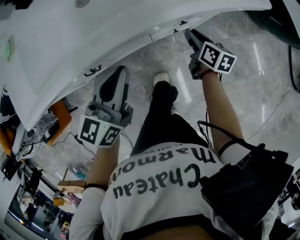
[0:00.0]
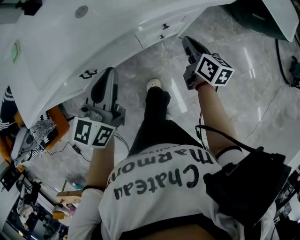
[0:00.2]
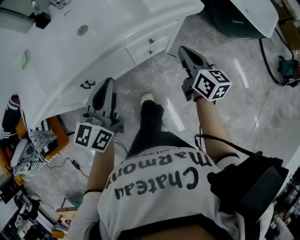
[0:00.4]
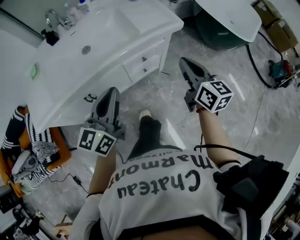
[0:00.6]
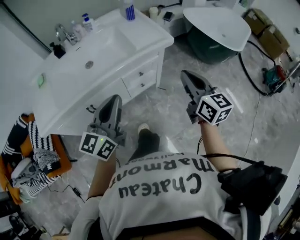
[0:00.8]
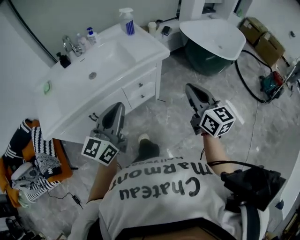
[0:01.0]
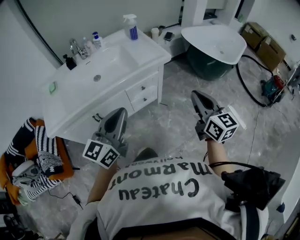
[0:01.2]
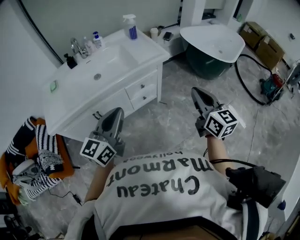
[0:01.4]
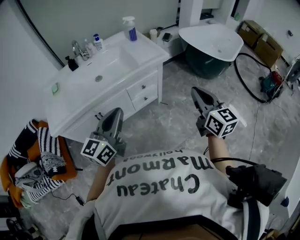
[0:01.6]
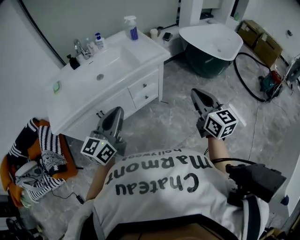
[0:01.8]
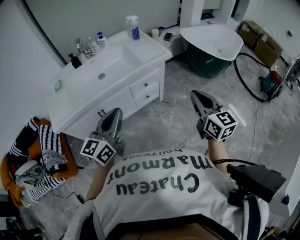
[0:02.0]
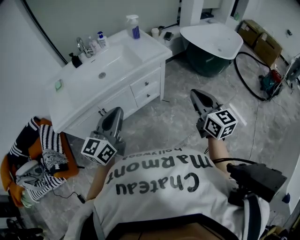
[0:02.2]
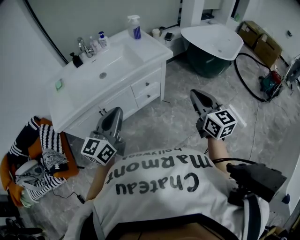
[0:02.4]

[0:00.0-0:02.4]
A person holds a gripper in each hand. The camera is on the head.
0:00.0 to 0:01.2: The right gripper moves upward and backward, about 50 cm, turns by about 40 degrees, and closes its fingers. The left gripper is displaced upward, backward and to the right by some 35 cm, and turns by about 20 degrees.
0:01.2 to 0:02.4: The left gripper moves to the left and backward, approximately 10 cm, while the right gripper goes roughly 5 cm backward.

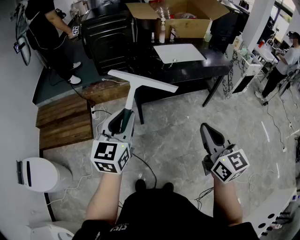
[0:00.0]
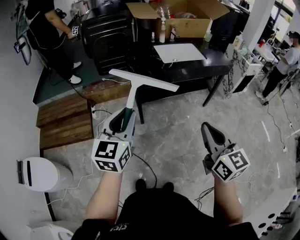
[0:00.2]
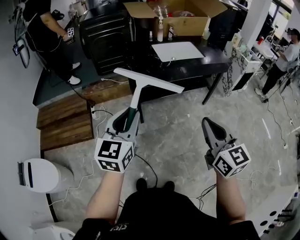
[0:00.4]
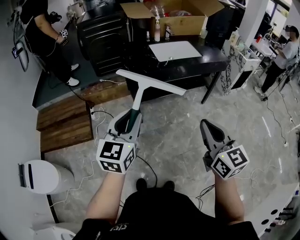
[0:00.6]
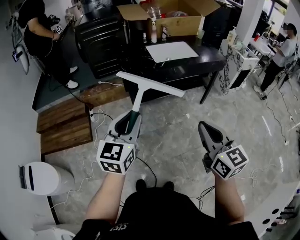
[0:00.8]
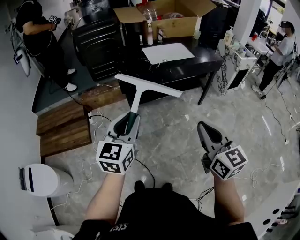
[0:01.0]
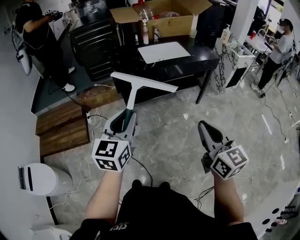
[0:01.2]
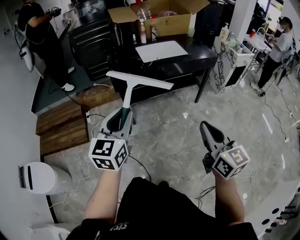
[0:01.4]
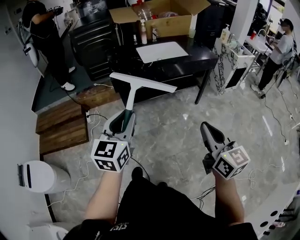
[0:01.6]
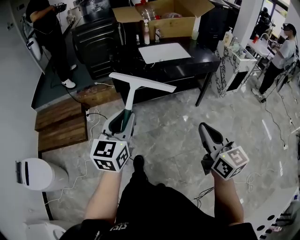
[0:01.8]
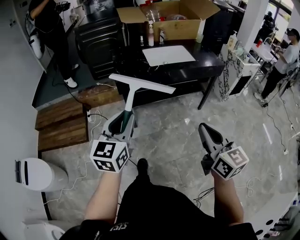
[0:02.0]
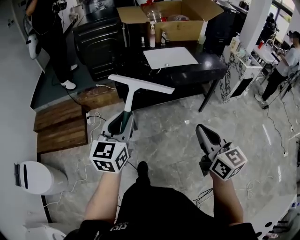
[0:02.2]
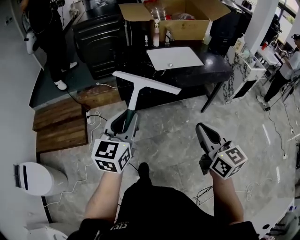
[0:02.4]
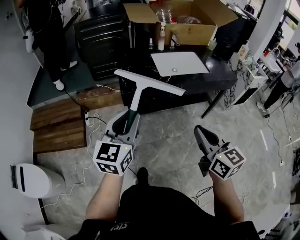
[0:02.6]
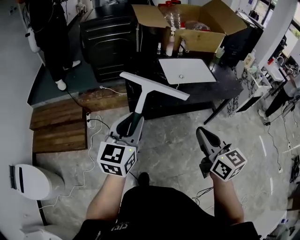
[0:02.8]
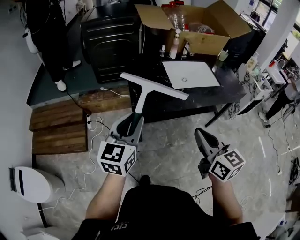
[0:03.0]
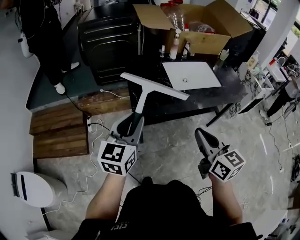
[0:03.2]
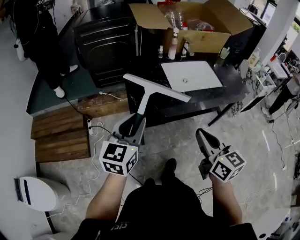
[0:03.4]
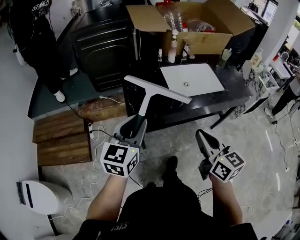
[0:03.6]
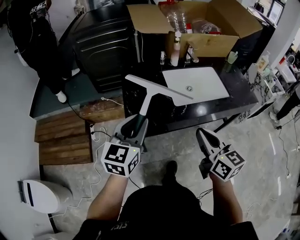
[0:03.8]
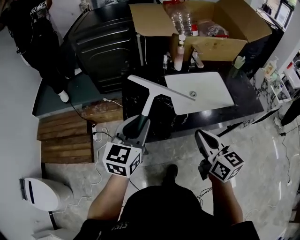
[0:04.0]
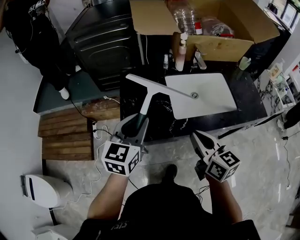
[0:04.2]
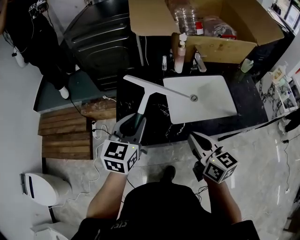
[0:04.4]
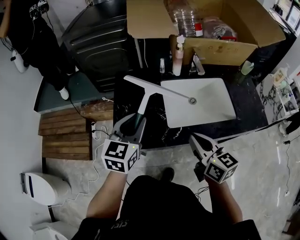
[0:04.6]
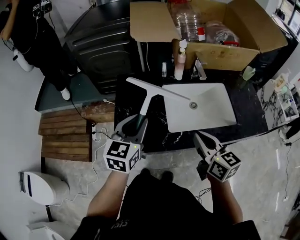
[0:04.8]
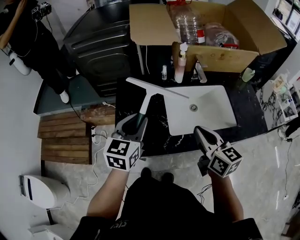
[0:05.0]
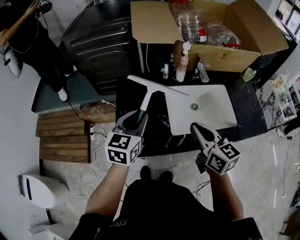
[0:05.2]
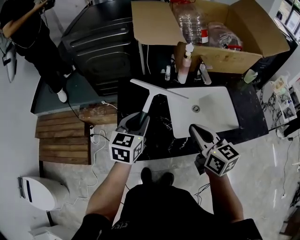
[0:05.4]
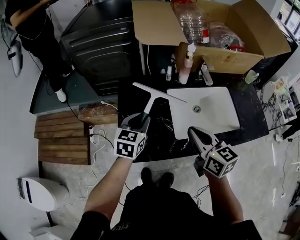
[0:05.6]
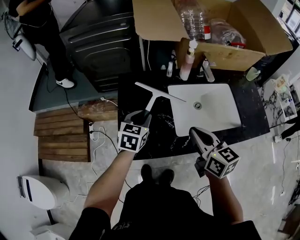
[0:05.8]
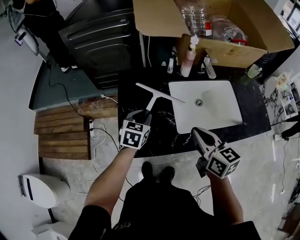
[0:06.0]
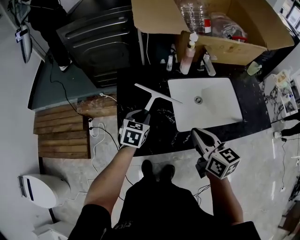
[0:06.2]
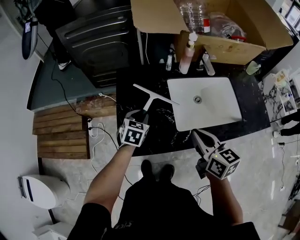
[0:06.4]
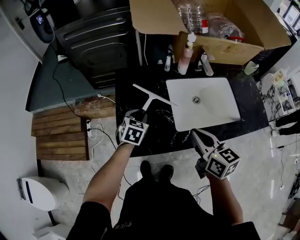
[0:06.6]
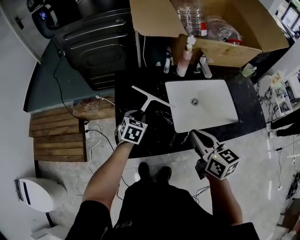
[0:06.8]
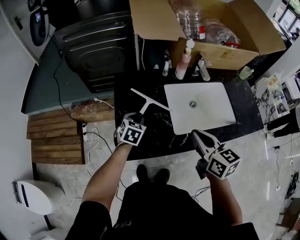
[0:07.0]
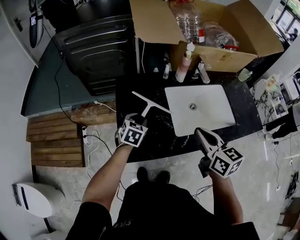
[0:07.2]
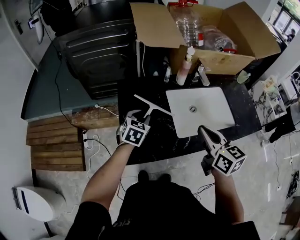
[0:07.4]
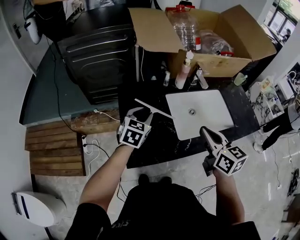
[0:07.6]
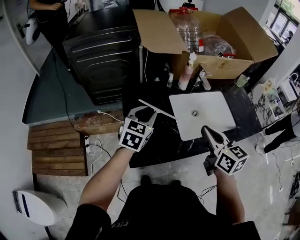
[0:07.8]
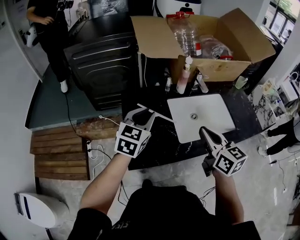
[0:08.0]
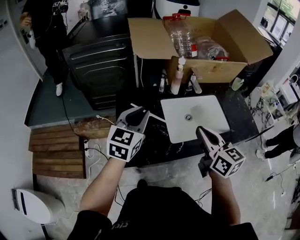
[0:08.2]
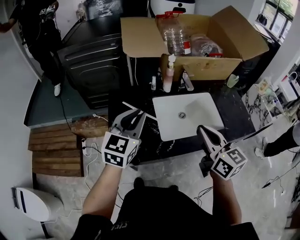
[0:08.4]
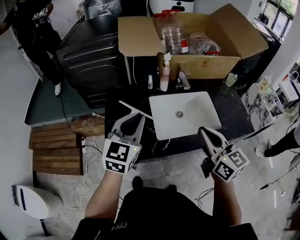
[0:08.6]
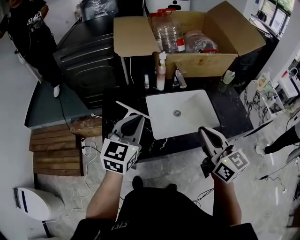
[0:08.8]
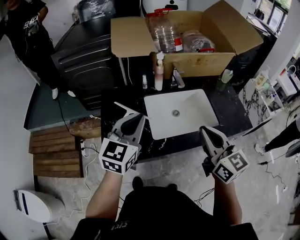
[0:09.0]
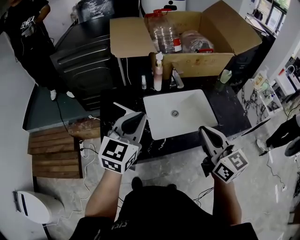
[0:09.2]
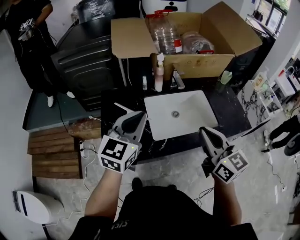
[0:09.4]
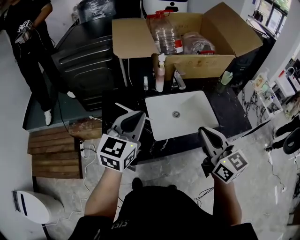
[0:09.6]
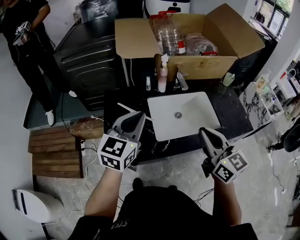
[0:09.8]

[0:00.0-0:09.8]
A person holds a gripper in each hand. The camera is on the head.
0:00.0 to 0:01.4: The two grippers go roughly 15 cm to the right.
0:01.4 to 0:02.8: The two grippers go approximately 25 cm forward and to the left.
0:02.8 to 0:04.2: Both grippers move forward, some 30 cm.
0:04.2 to 0:05.6: The left gripper moves forward and downward, approximately 15 cm. The right gripper moves forward, about 10 cm.
0:05.6 to 0:07.0: The left gripper is displaced downward by roughly 15 cm.
0:07.0 to 0:08.4: The left gripper shifts approximately 25 cm upward, and tilts its fingers roughly 40 degrees upward, while the right gripper is displaced upward and to the right by about 10 cm.

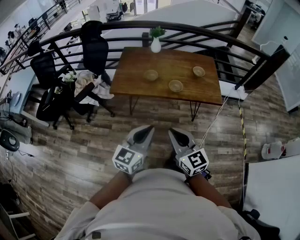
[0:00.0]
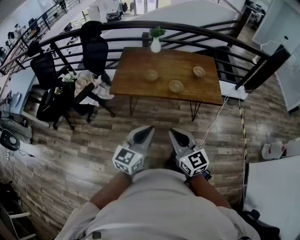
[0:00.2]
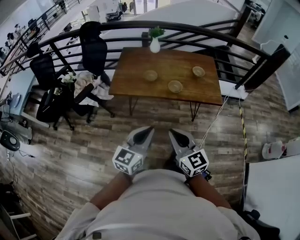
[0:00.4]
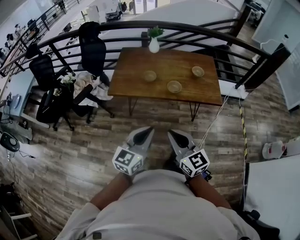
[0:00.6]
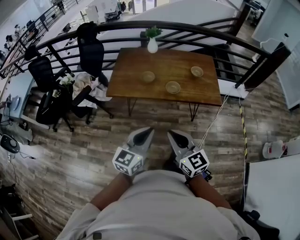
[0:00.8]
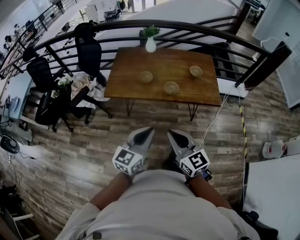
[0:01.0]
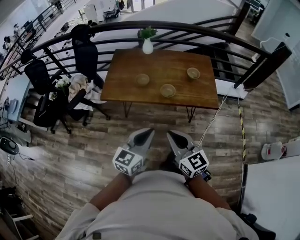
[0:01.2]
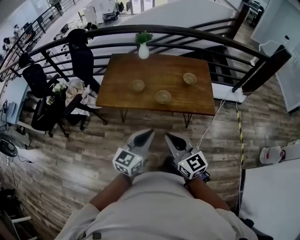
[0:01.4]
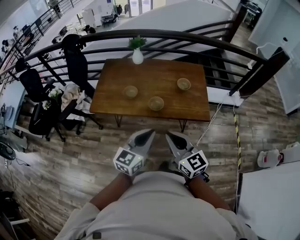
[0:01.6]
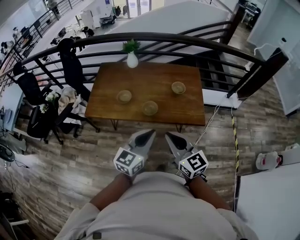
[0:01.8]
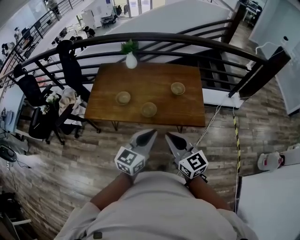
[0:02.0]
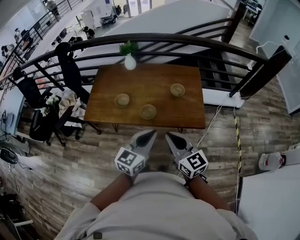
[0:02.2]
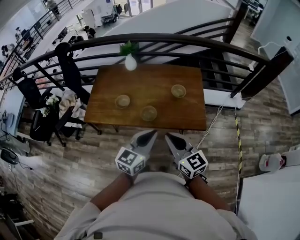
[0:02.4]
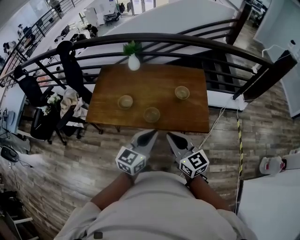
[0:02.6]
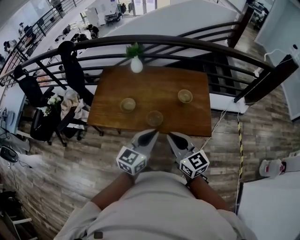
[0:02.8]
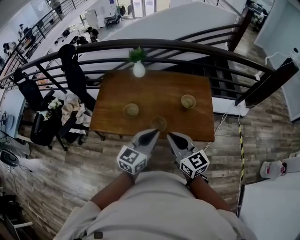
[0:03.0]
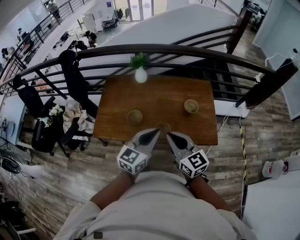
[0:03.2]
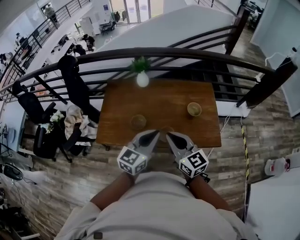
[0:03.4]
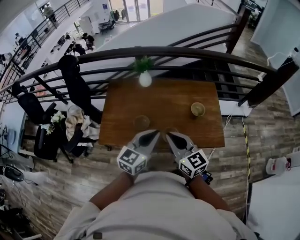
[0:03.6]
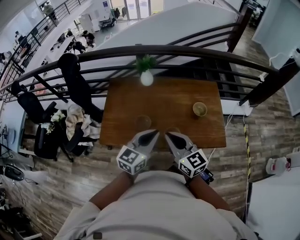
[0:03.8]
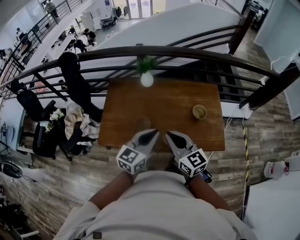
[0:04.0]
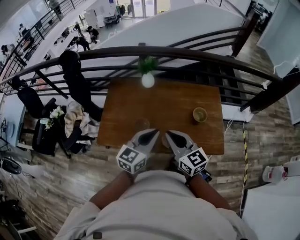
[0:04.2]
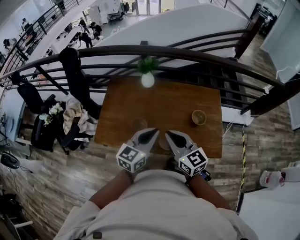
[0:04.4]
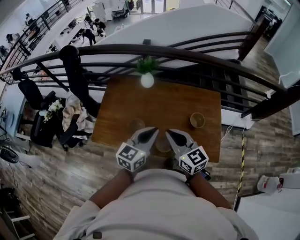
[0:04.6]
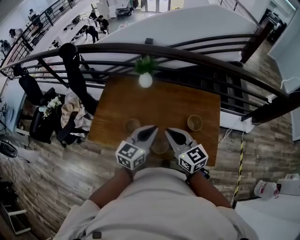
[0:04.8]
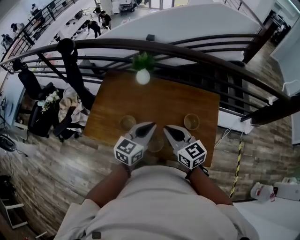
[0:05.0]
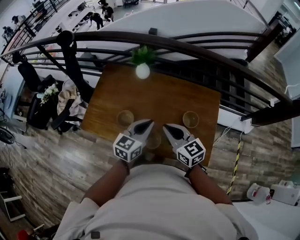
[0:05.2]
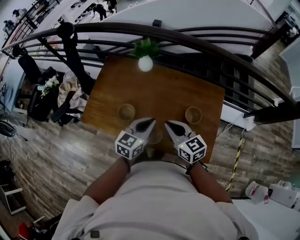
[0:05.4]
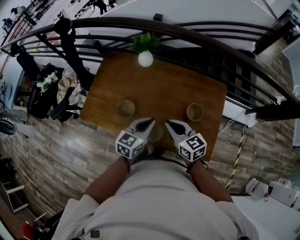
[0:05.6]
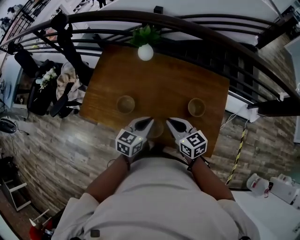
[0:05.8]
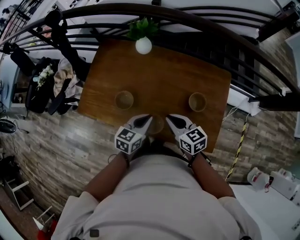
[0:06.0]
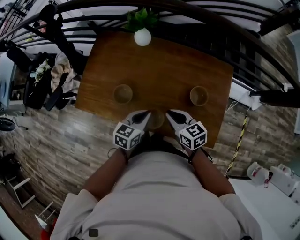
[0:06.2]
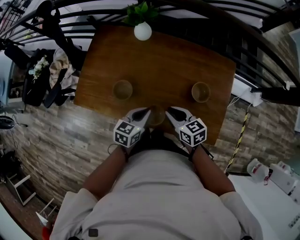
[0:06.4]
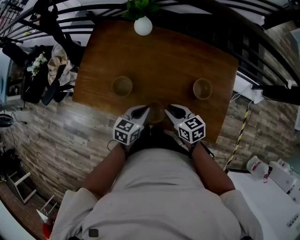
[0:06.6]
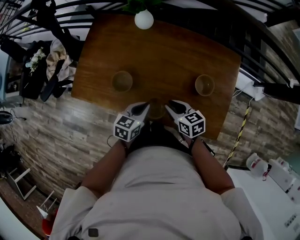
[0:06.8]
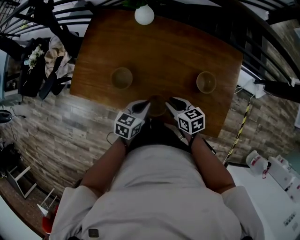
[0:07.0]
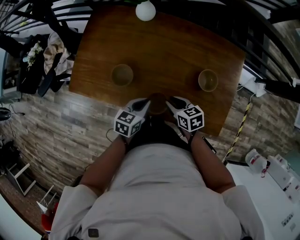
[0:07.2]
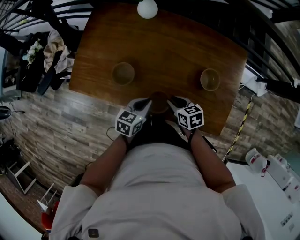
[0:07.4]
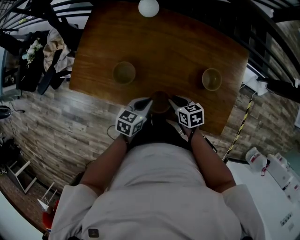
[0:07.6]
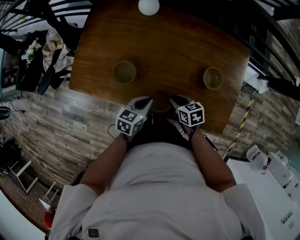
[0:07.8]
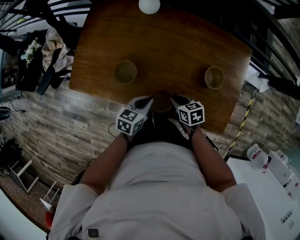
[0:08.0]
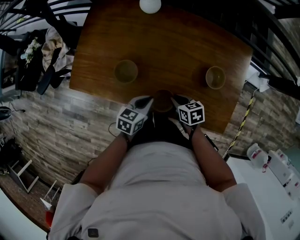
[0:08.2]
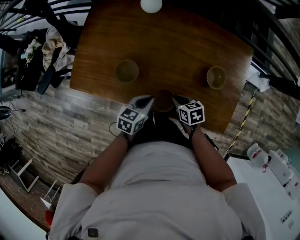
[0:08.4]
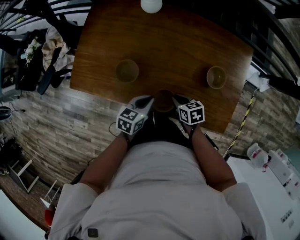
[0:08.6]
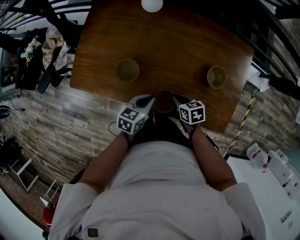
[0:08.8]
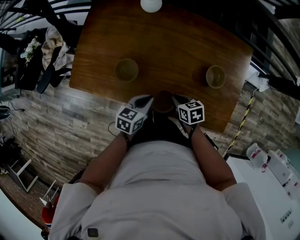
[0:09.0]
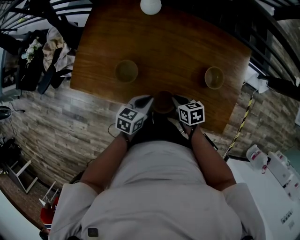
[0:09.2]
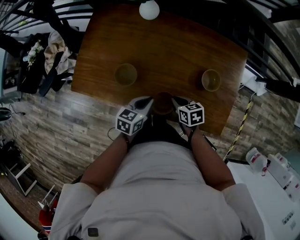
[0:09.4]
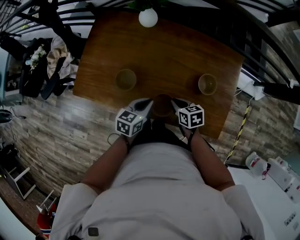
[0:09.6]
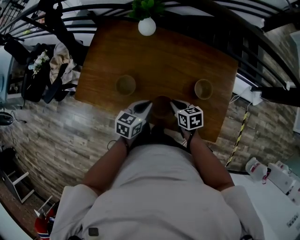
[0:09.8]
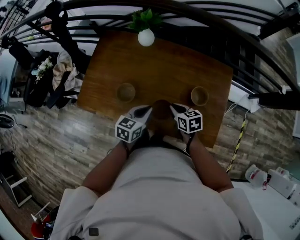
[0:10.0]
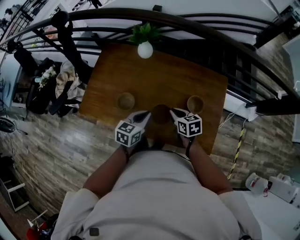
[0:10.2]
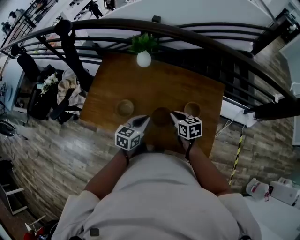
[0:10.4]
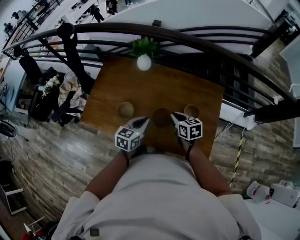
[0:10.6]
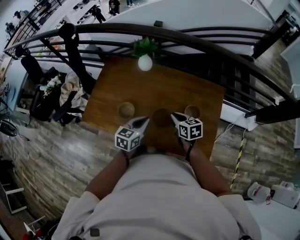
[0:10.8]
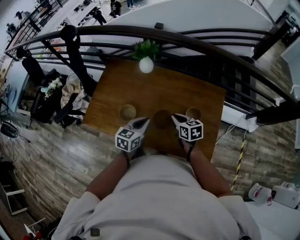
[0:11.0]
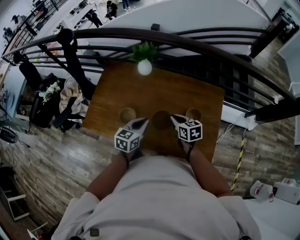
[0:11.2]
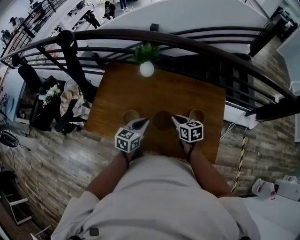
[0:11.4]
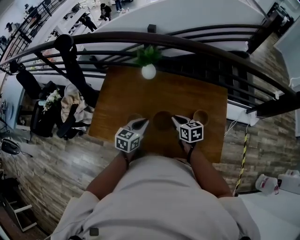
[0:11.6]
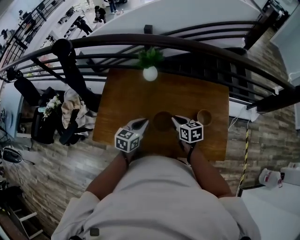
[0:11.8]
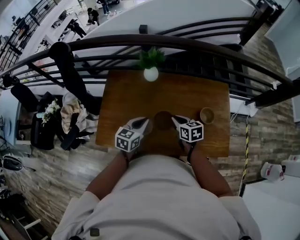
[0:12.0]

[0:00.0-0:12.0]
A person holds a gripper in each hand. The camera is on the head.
0:00.0 to 0:01.6: Both grippers move forward and to the right, some 25 cm.
0:01.6 to 0:03.0: Both grippers travel together forward, about 20 cm.
0:03.0 to 0:04.4: The two grippers go approximately 15 cm forward and to the left.
0:04.4 to 0:06.0: The left gripper goes some 20 cm downward and to the right, and changes its angle by some 20 degrees; the right gripper travels downward, to the right and forward by roughly 25 cm, and swivels approximately 30 degrees.
0:06.0 to 0:07.6: The grippers both shift downward by roughly 15 cm. The right gripper turns by about 30 degrees.
0:07.6 to 0:09.0: There are only small adjustments of the grippers.
0:09.0 to 0:10.4: Both grippers move upward, roughly 20 cm. The right gripper changes its angle by approximately 20 degrees.
0:10.4 to 0:12.0: The right gripper is displaced to the left by about 15 cm; the left gripper shifts approximately 15 cm to the left and forward.
